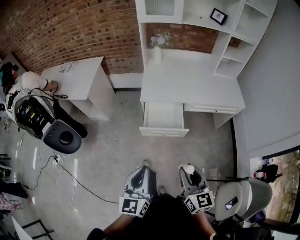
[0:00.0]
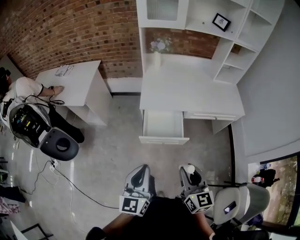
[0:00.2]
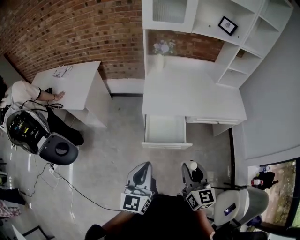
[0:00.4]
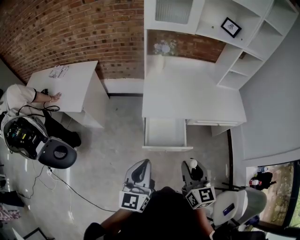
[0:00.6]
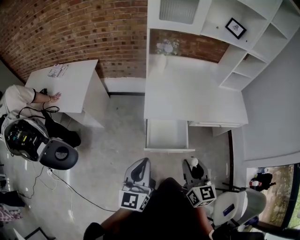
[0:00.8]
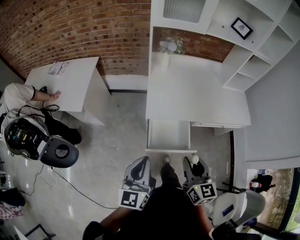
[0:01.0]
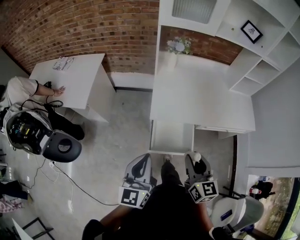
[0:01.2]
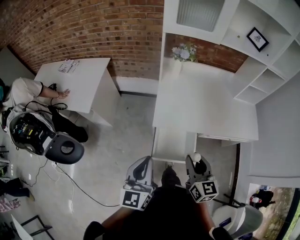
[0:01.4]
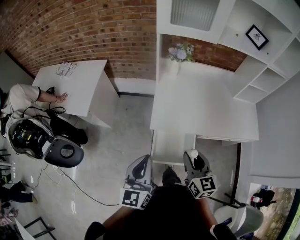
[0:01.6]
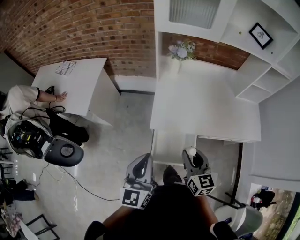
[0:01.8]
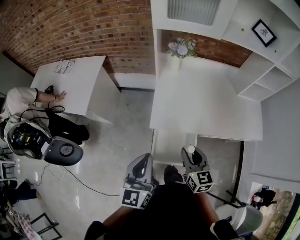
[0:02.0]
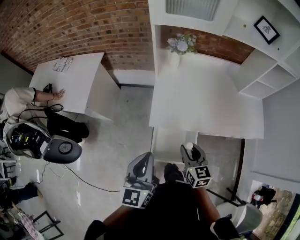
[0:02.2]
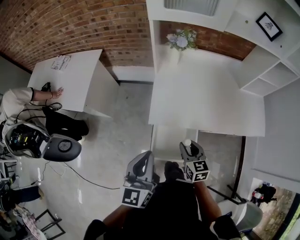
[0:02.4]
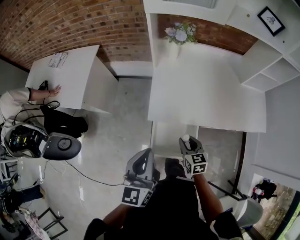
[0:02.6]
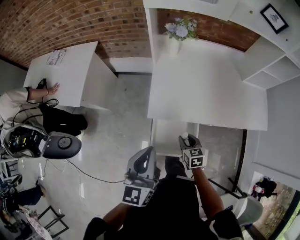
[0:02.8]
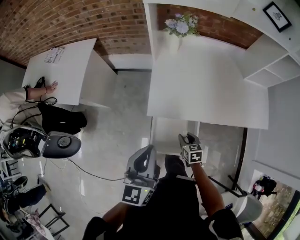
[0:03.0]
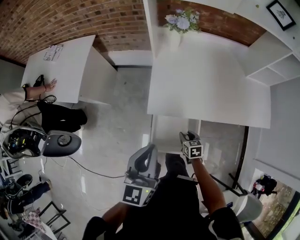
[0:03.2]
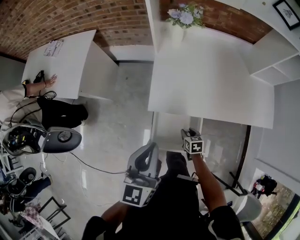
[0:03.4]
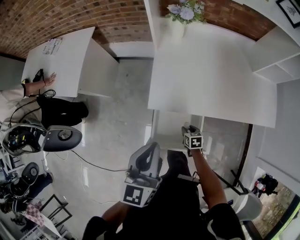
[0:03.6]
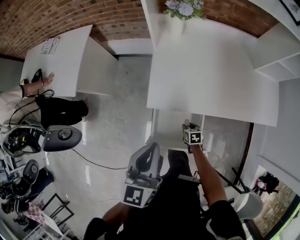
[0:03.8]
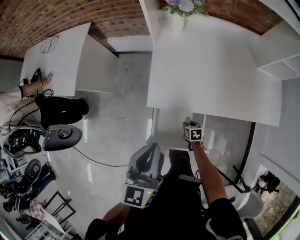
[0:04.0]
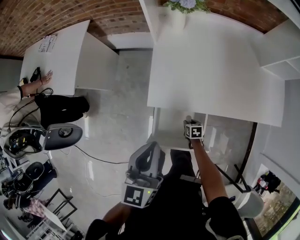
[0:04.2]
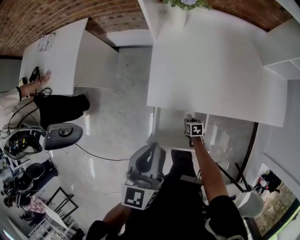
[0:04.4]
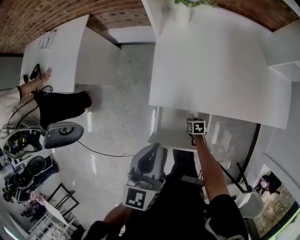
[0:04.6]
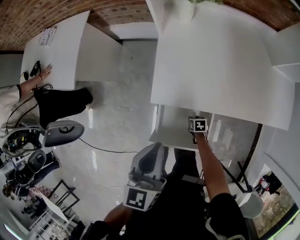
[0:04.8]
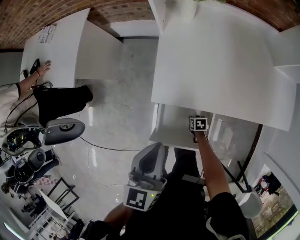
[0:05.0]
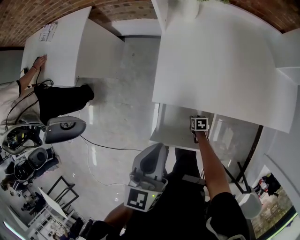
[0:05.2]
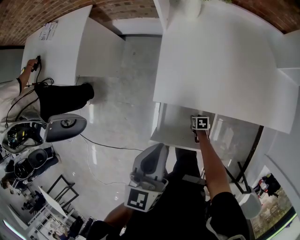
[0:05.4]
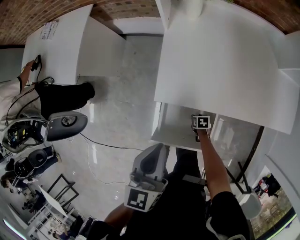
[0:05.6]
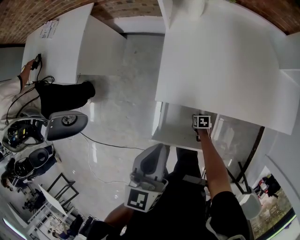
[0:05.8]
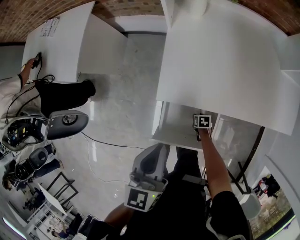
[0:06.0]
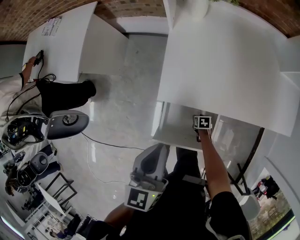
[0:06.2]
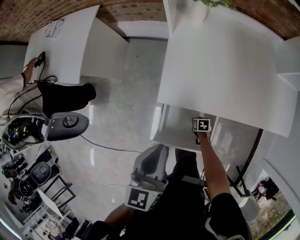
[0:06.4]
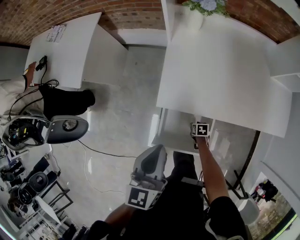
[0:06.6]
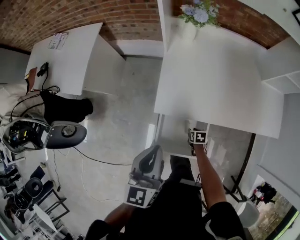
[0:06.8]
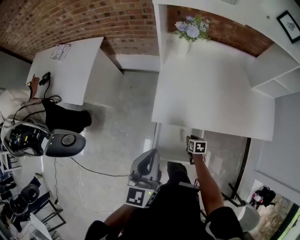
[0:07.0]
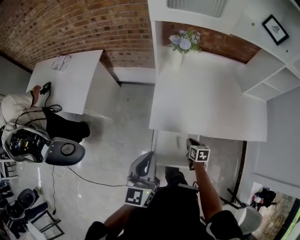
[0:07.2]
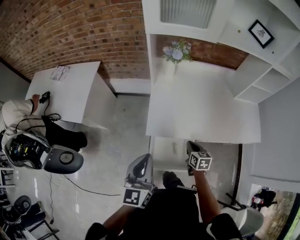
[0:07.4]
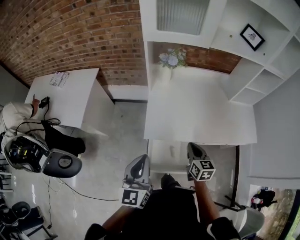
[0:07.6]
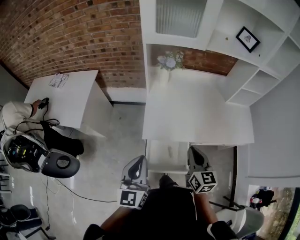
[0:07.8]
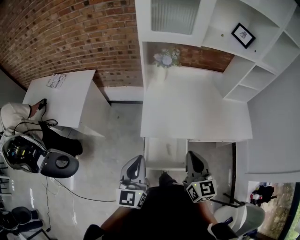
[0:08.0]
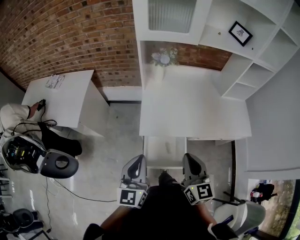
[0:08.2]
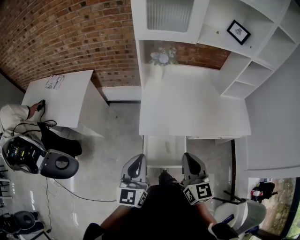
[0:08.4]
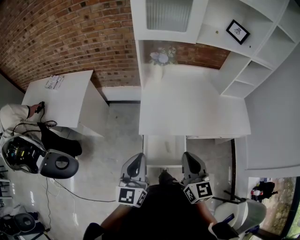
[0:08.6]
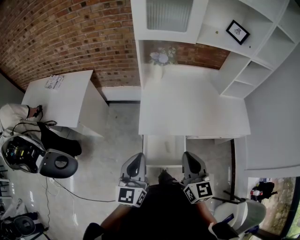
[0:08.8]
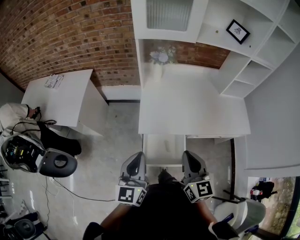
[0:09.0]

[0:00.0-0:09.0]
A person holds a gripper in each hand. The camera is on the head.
0:00.0 to 0:01.6: The grippers both shift forward by some 35 cm.
0:01.6 to 0:03.0: The left gripper moves forward, roughly 10 cm; the right gripper heads downward, covering approximately 30 cm, and points its fingers approximately 30 degrees further downward.
0:03.0 to 0:04.4: The left gripper moves downward and forward, roughly 10 cm. The right gripper shifts about 20 cm downward, and swivels some 20 degrees.
0:04.4 to 0:06.0: The right gripper moves downward, about 5 cm.
0:06.0 to 0:07.6: The left gripper heads upward, covering some 15 cm, while the right gripper is displaced upward by some 50 cm, points its fingers some 50 degrees further upward, and closes its fingers.
0:07.6 to 0:09.0: The right gripper shifts roughly 20 cm upward and backward, and swivels approximately 20 degrees.

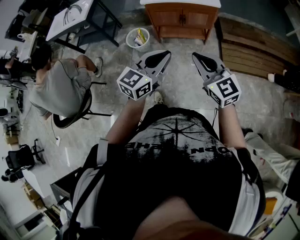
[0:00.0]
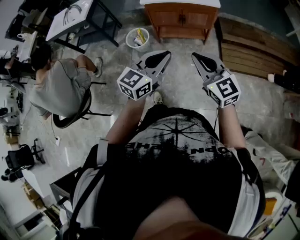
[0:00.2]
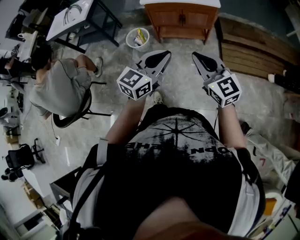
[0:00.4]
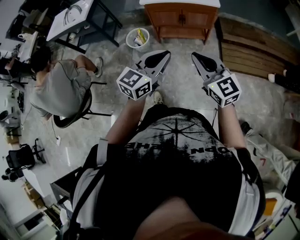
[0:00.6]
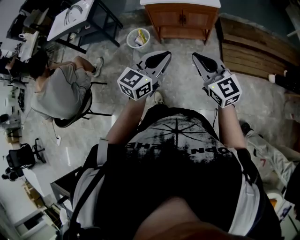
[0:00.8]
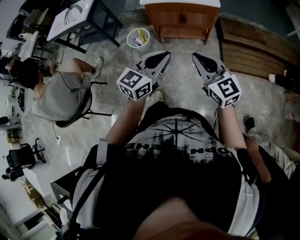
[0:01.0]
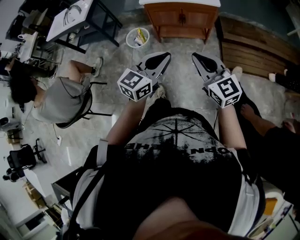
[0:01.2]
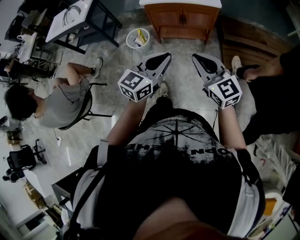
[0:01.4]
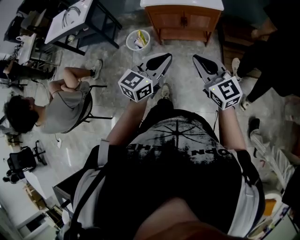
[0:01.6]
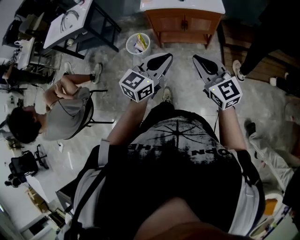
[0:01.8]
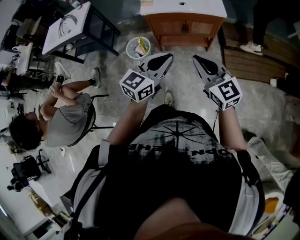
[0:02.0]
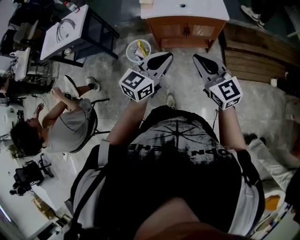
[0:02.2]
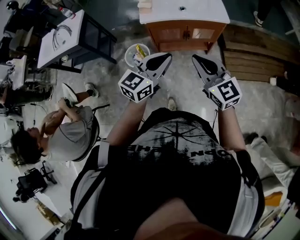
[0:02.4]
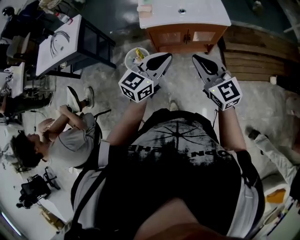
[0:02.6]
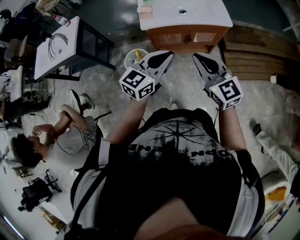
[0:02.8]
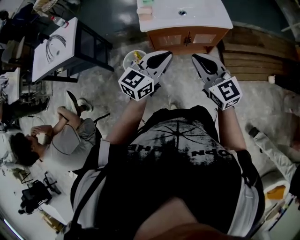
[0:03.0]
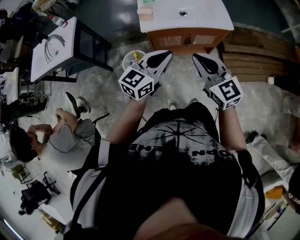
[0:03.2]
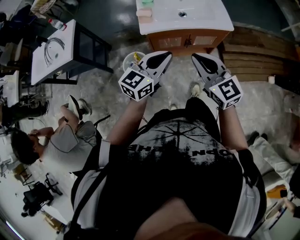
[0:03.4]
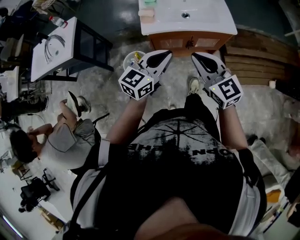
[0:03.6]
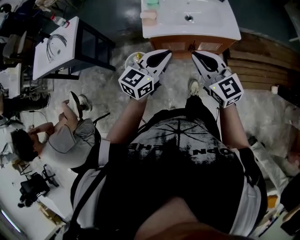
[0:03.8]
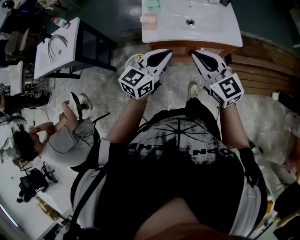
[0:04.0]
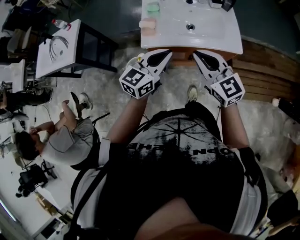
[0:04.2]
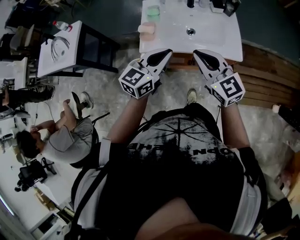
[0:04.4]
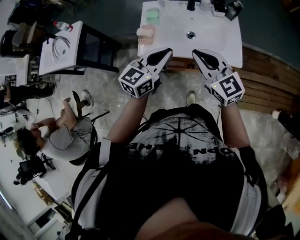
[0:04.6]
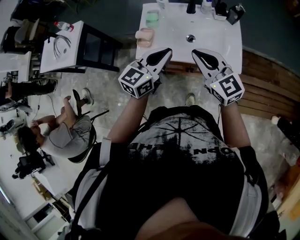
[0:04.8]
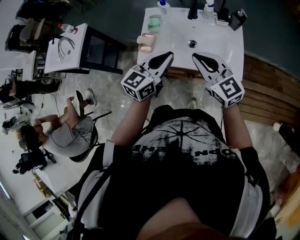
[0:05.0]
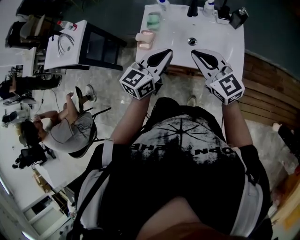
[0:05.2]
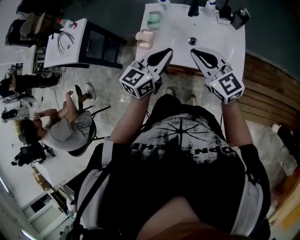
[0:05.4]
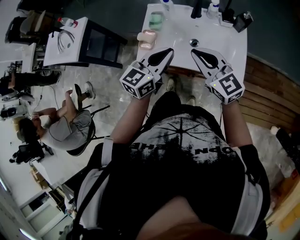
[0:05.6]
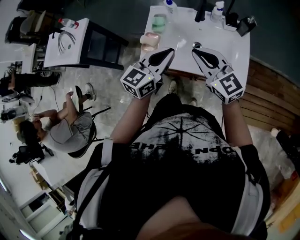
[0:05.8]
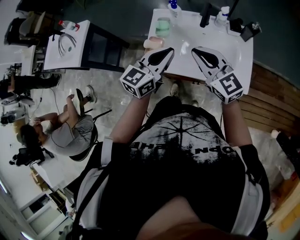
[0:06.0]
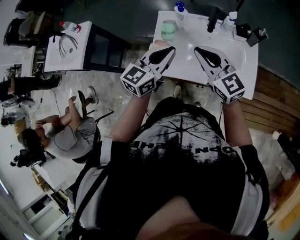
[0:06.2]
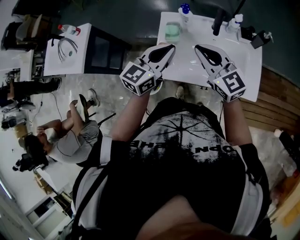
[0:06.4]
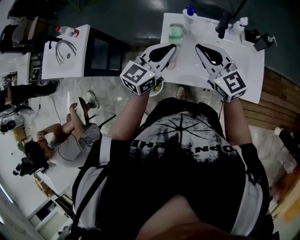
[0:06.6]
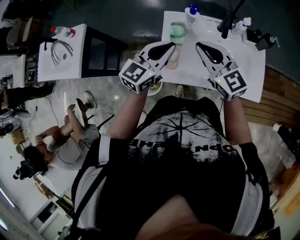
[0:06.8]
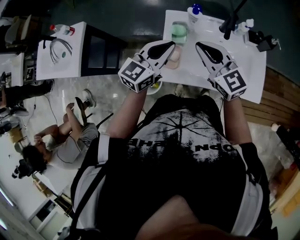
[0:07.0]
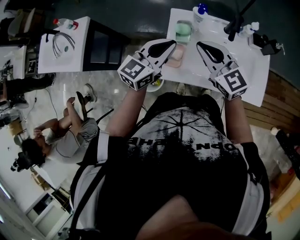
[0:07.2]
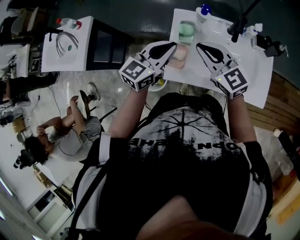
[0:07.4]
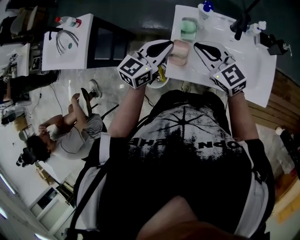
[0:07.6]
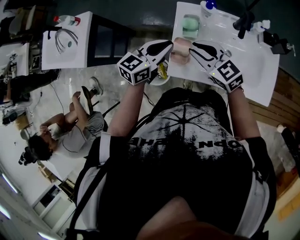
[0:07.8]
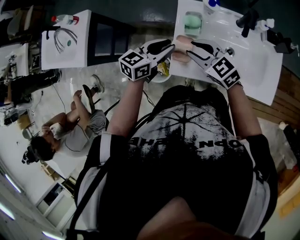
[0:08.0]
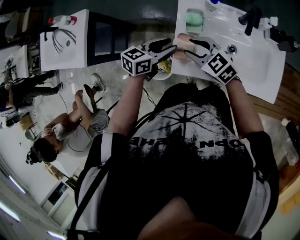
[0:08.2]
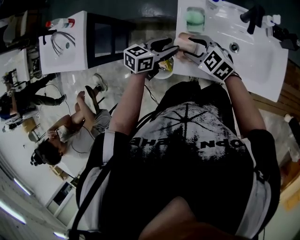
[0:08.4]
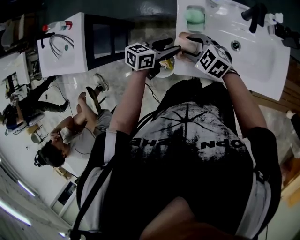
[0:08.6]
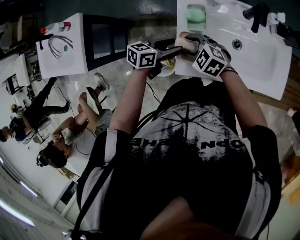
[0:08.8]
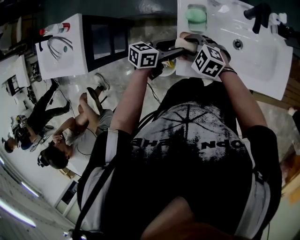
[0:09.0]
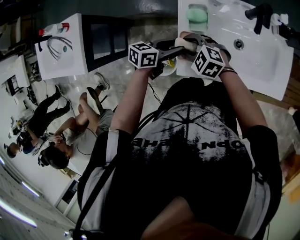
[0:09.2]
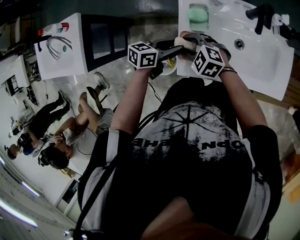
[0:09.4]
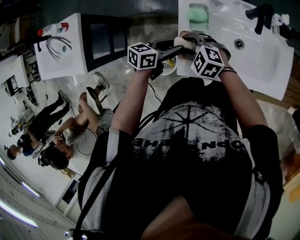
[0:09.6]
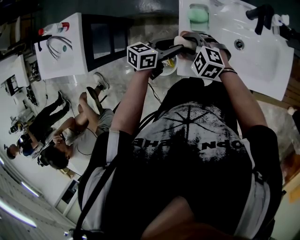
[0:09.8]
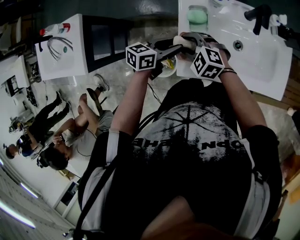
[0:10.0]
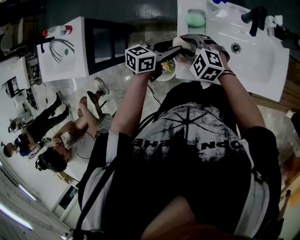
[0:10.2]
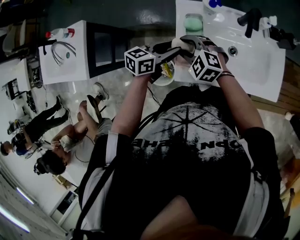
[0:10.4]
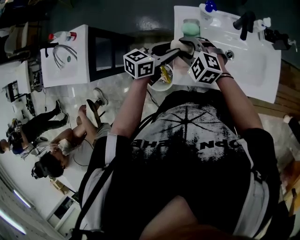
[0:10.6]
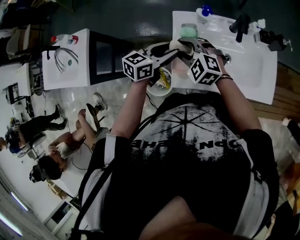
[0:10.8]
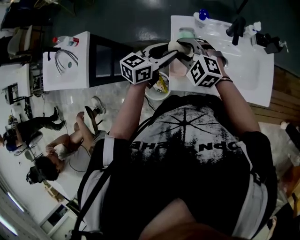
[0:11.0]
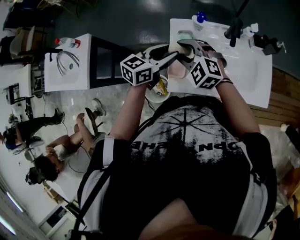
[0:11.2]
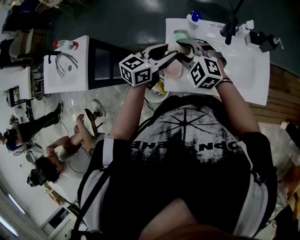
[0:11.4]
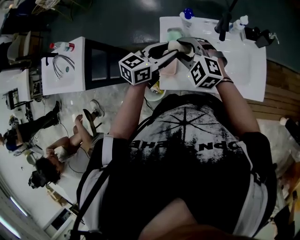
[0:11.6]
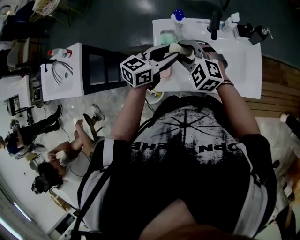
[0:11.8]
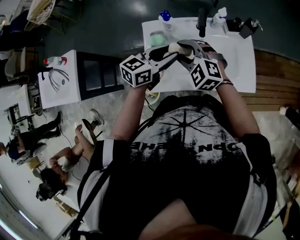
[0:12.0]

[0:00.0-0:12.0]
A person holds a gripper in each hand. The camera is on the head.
0:00.0 to 0:01.6: There are only small adjustments of the grippers.
0:01.6 to 0:03.0: The grippers both shift forward and to the left by roughly 30 cm.
0:03.0 to 0:04.4: Both grippers travel together forward, some 20 cm.
0:04.4 to 0:06.0: Both grippers travel together forward, approximately 15 cm.
0:06.0 to 0:07.6: Both grippers move to the left, forward and downward, roughly 20 cm.
0:07.6 to 0:09.0: The two grippers go roughly 20 cm downward. The left gripper changes its angle by about 40 degrees, and opens its fingers; the right gripper rotates approximately 30 degrees, and opens up.
0:09.0 to 0:10.4: The two grippers go about 5 cm upward.
0:10.4 to 0:12.0: The grippers both shift to the right and upward by about 20 cm.

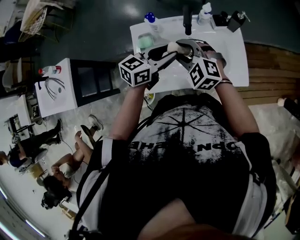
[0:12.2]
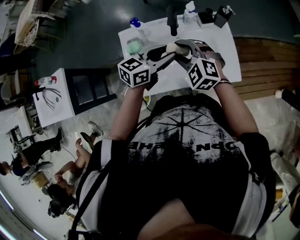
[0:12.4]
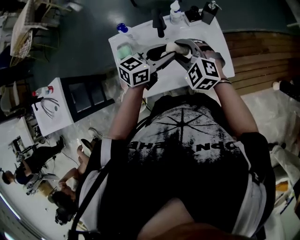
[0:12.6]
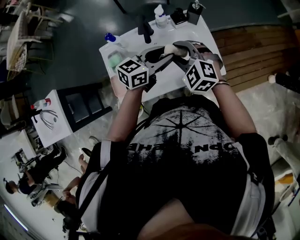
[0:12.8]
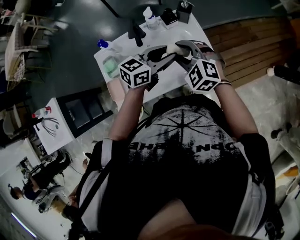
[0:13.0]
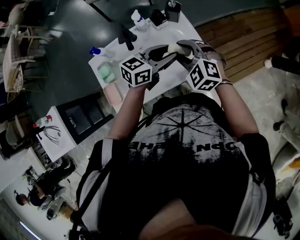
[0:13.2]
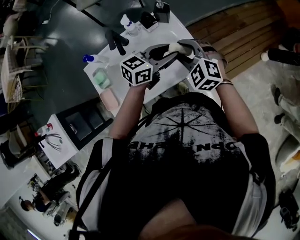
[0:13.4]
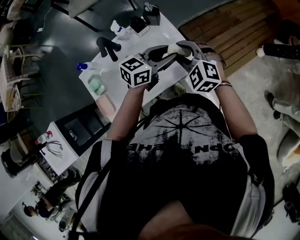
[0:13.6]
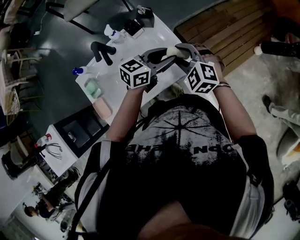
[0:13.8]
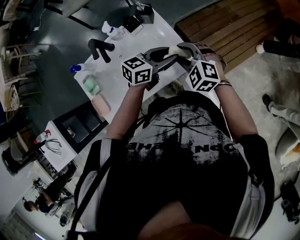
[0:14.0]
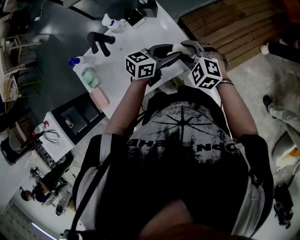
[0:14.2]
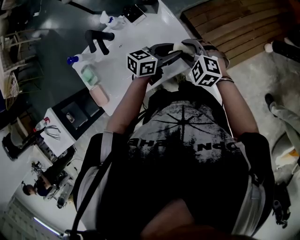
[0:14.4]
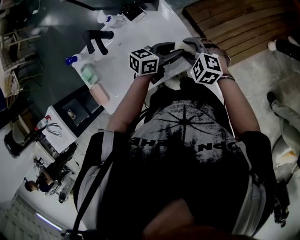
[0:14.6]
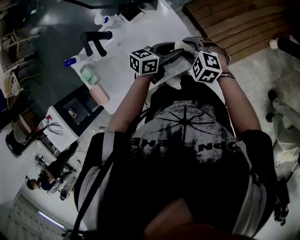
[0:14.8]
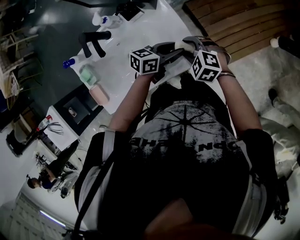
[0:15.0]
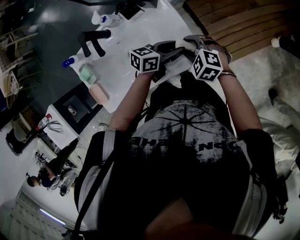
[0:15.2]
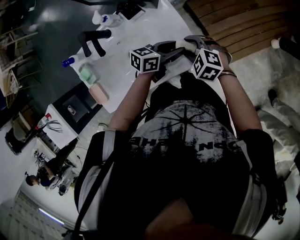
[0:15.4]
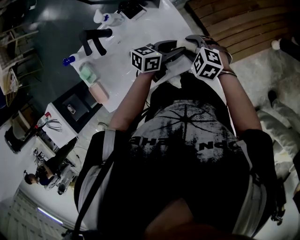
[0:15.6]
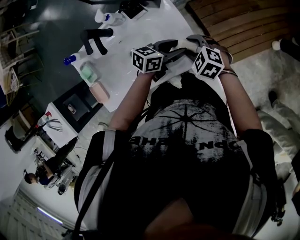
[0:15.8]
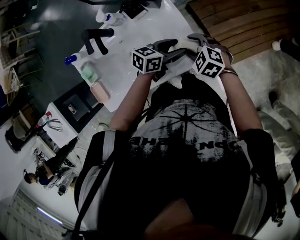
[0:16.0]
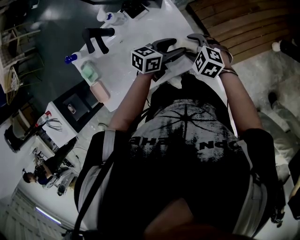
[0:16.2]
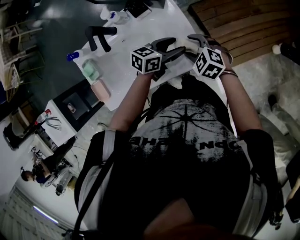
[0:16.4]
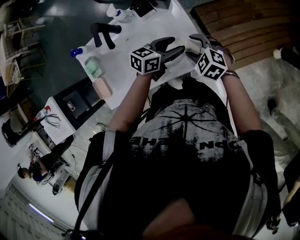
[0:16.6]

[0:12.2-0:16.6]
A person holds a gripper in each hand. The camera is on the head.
0:12.2 to 0:13.6: The left gripper moves some 30 cm, and swivels approximately 30 degrees. The right gripper changes place by roughly 30 cm, and turns by roughly 30 degrees.
0:13.6 to 0:15.2: Both grippers move downward, some 15 cm. The right gripper swivels roughly 20 degrees. The left gripper rotates some 20 degrees.
0:15.2 to 0:16.6: The grippers move only a little.
